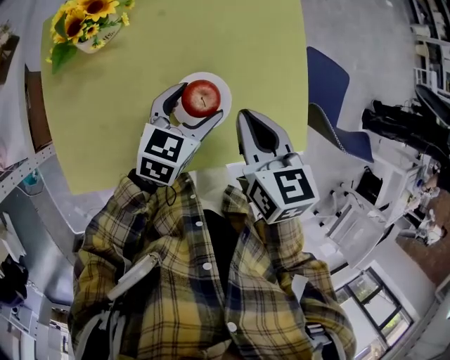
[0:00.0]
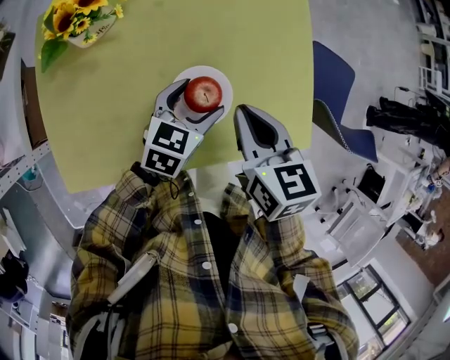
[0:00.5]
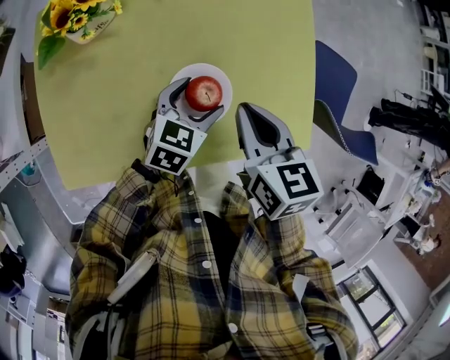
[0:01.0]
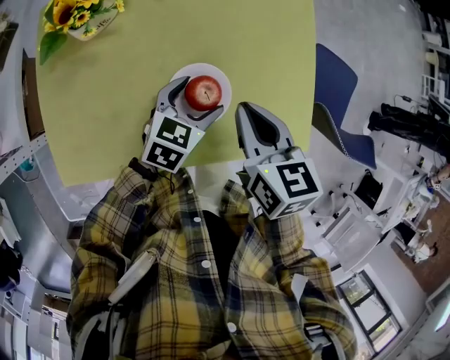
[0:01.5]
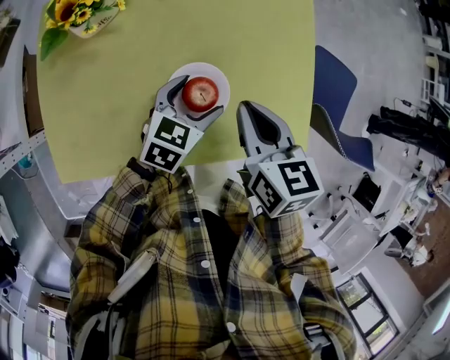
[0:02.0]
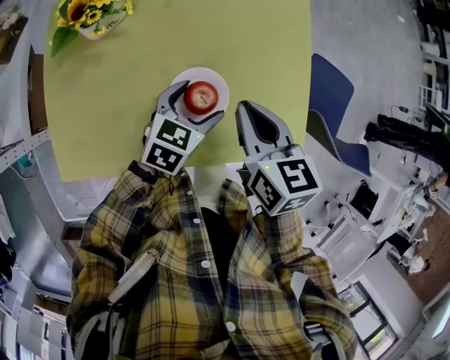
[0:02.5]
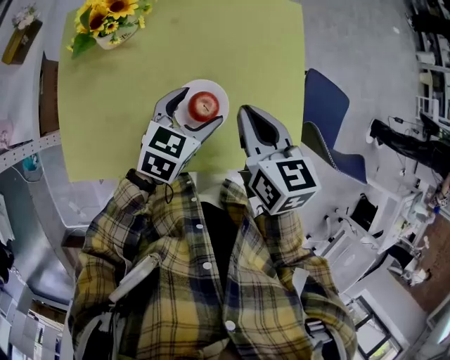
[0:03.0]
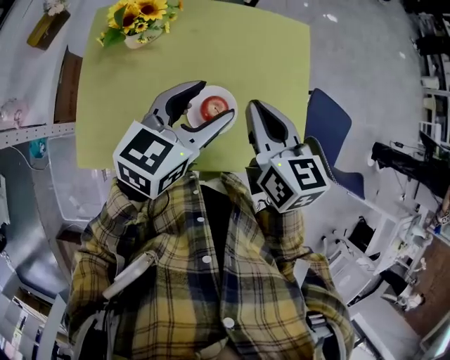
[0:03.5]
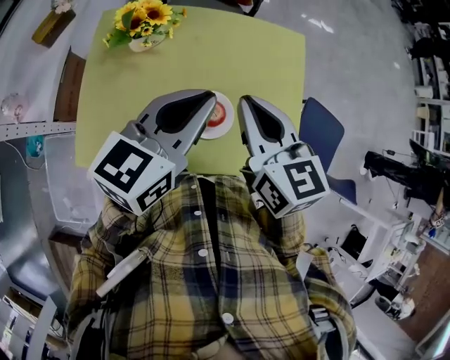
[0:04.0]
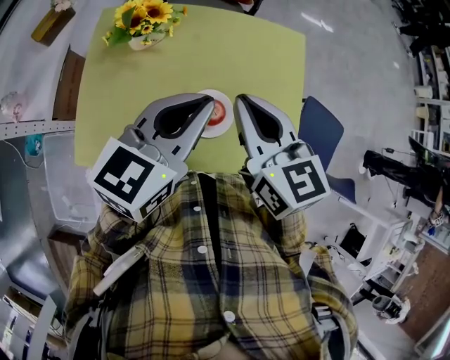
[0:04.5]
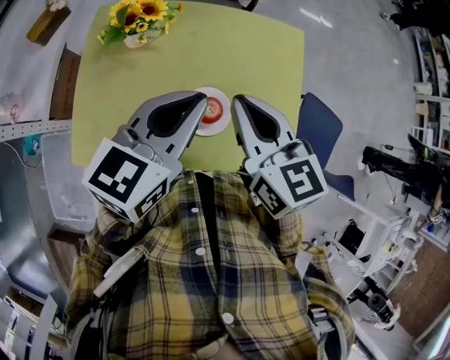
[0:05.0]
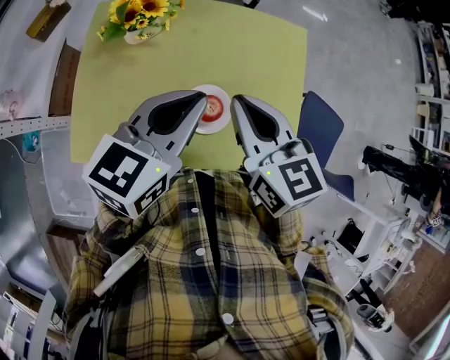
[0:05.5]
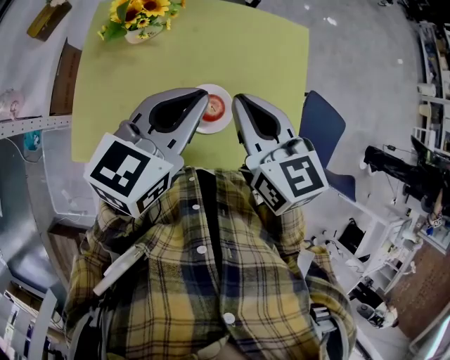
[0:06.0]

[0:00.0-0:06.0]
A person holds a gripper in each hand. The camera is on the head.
0:00.0 to 0:02.0: The left gripper moves about 5 cm.
0:02.0 to 0:04.0: The right gripper goes roughly 15 cm upward, and rotates approximately 20 degrees. The left gripper is displaced upward by some 30 cm, turns by about 30 degrees, and closes.
0:04.0 to 0:06.0: The grippers make only small movements.

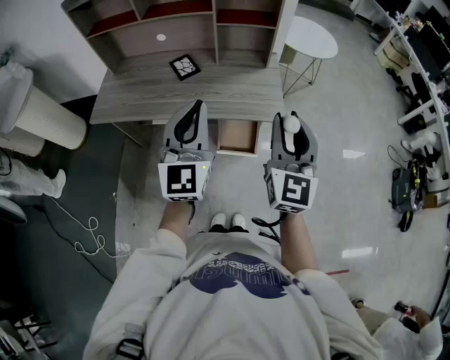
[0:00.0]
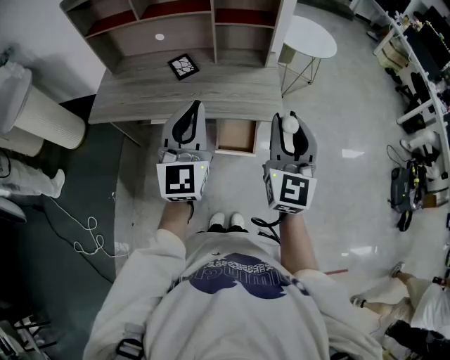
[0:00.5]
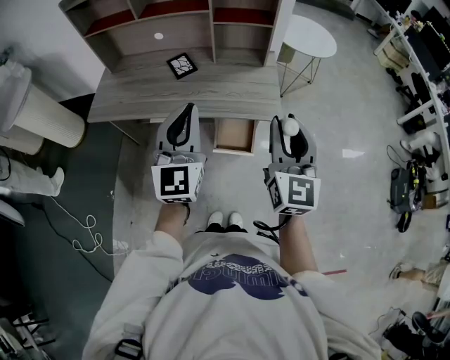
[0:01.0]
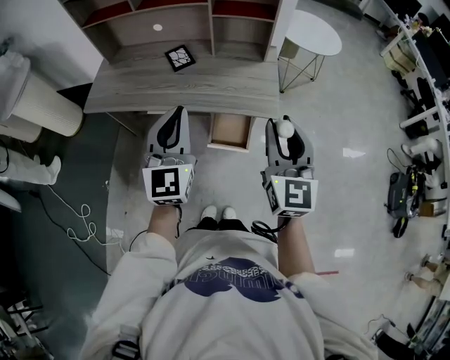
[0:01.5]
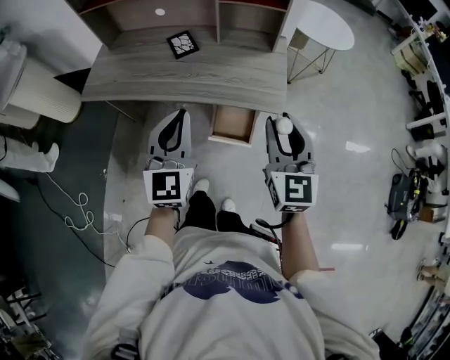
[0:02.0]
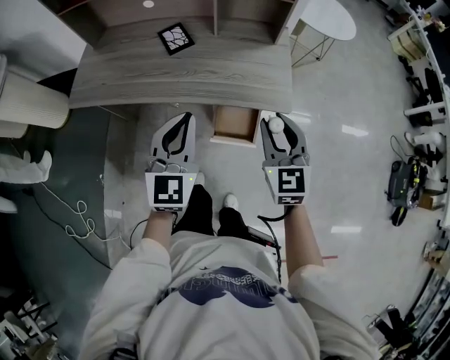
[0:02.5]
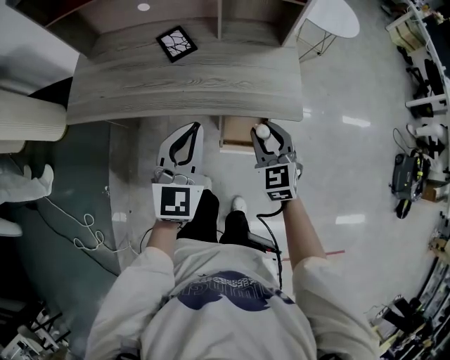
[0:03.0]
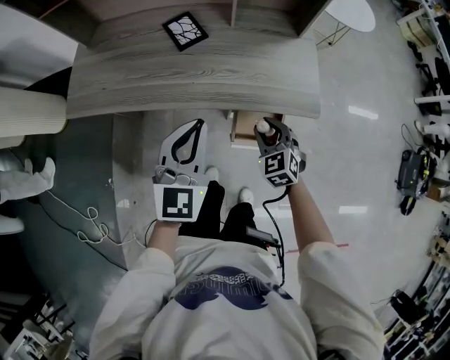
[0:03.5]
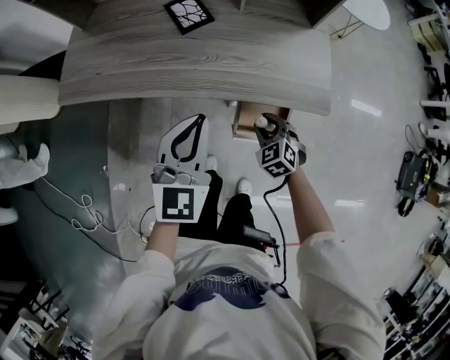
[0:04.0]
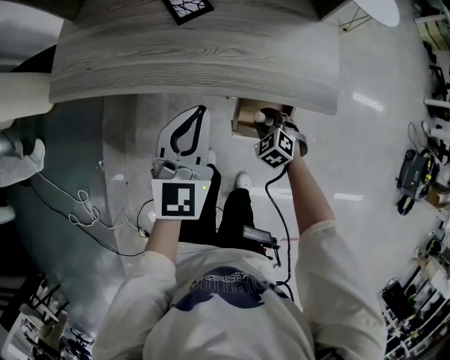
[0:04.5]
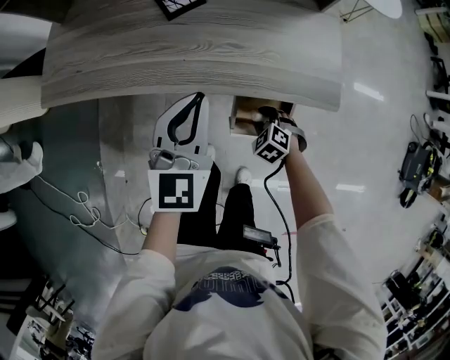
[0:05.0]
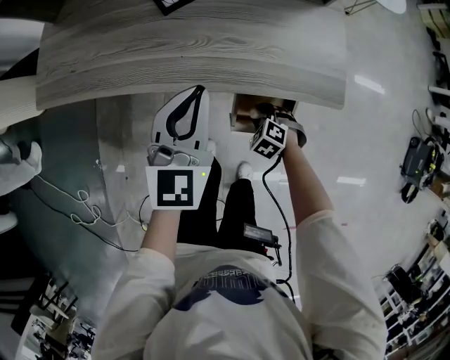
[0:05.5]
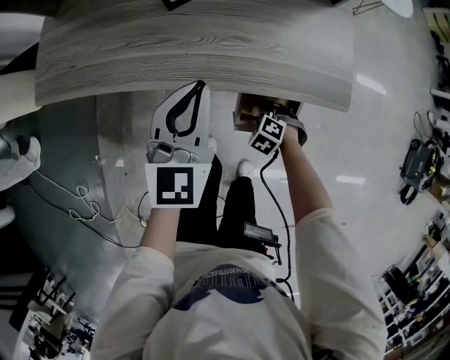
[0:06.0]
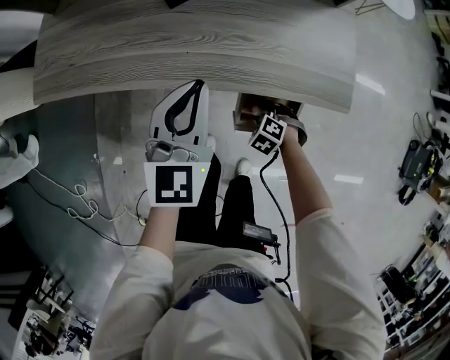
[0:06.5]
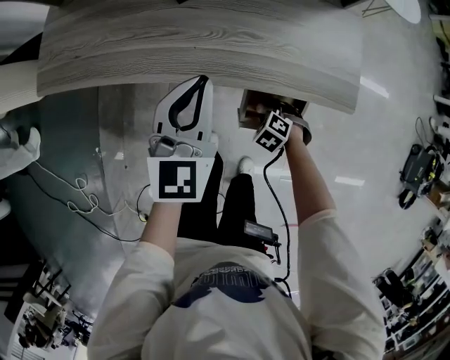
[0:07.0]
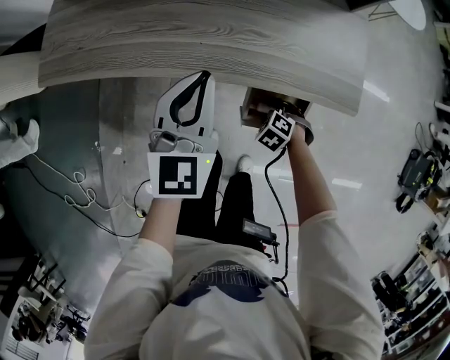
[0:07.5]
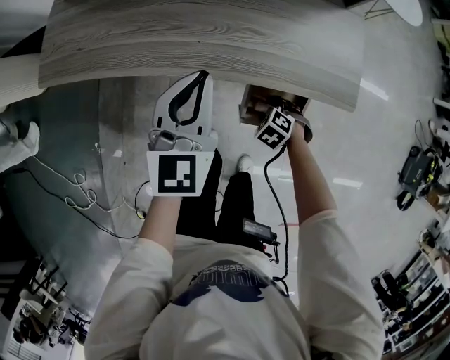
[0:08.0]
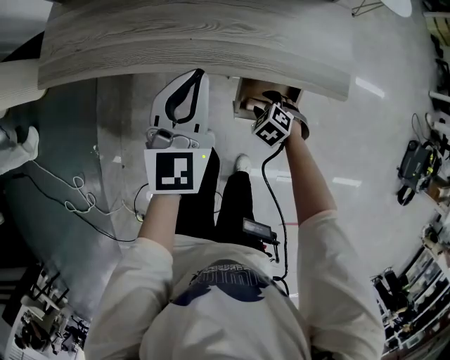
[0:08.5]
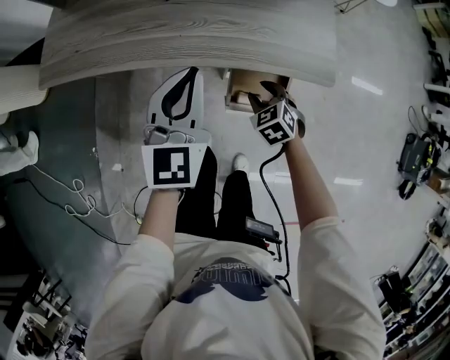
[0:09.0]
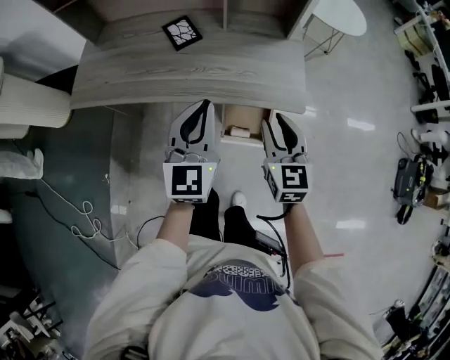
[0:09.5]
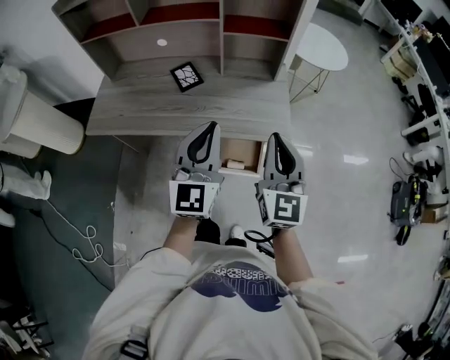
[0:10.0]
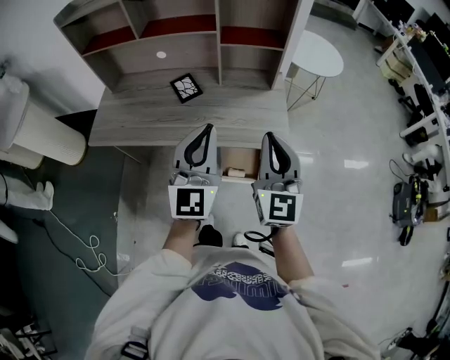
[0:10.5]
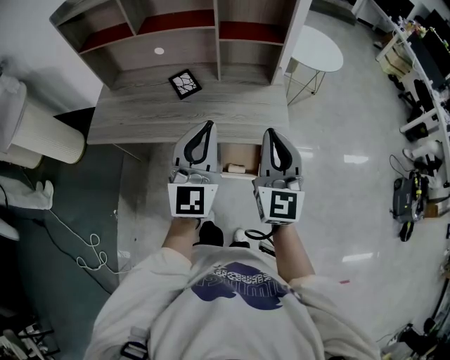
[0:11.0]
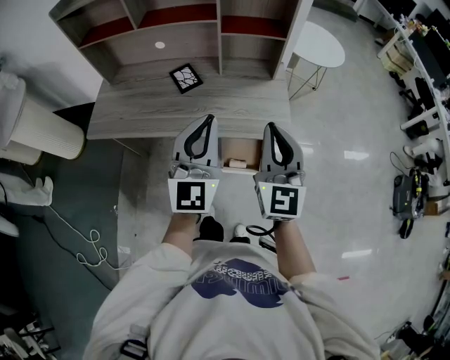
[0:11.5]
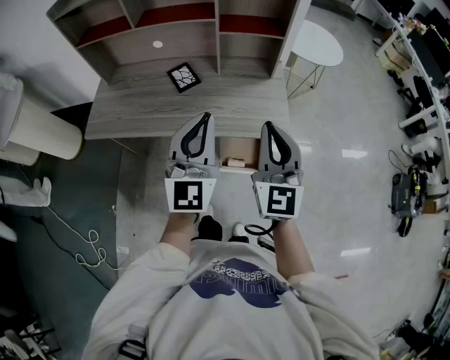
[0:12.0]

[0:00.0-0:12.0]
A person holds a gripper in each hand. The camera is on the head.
0:00.0 to 0:02.0: The grippers both shift downward by about 10 cm.
0:02.0 to 0:04.0: The left gripper is displaced downward, forward and to the left by approximately 20 cm; the right gripper shifts approximately 35 cm downward, and tilts its fingers approximately 50 degrees downward.
0:04.0 to 0:06.0: The right gripper goes about 15 cm downward, and turns by about 30 degrees. Meanwhile the left gripper shifts by roughly 10 cm.
0:06.0 to 0:08.0: The grippers move only a little.
0:08.0 to 0:10.0: The left gripper heads upward, covering roughly 20 cm, and turns by about 20 degrees. Meanwhile the right gripper goes approximately 50 cm upward, angles its fingers upward, by approximately 80 degrees, and closes up.
0:10.0 to 0:12.0: The grippers make only small movements.

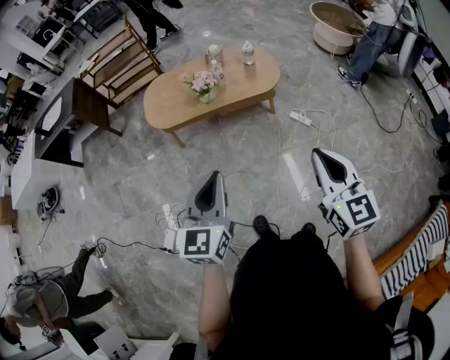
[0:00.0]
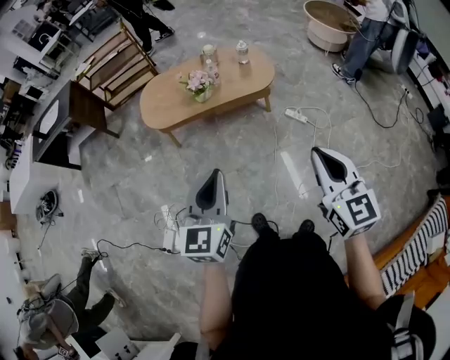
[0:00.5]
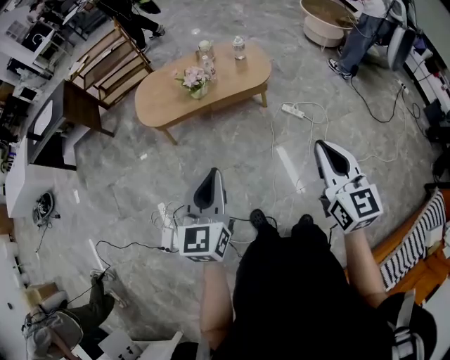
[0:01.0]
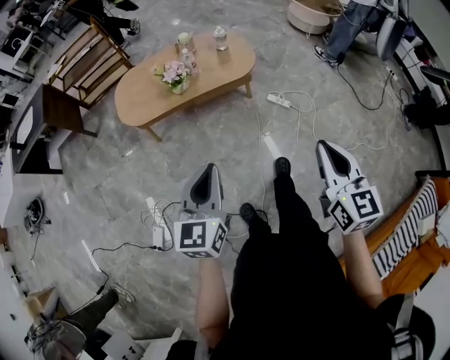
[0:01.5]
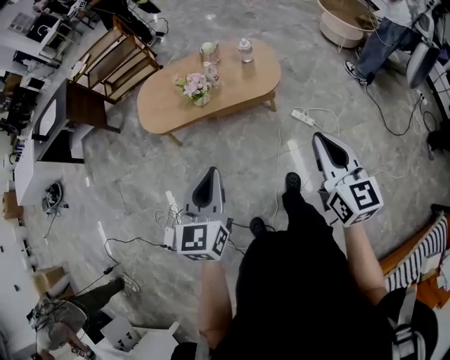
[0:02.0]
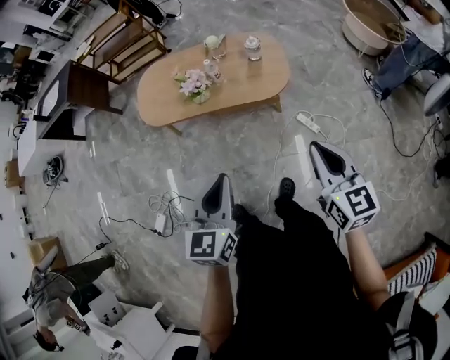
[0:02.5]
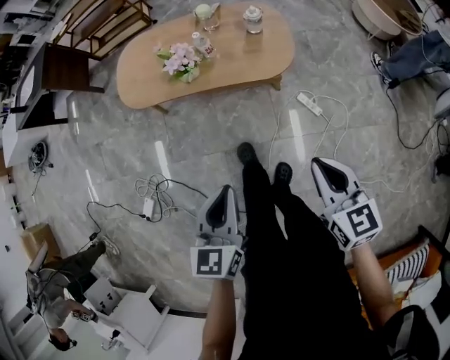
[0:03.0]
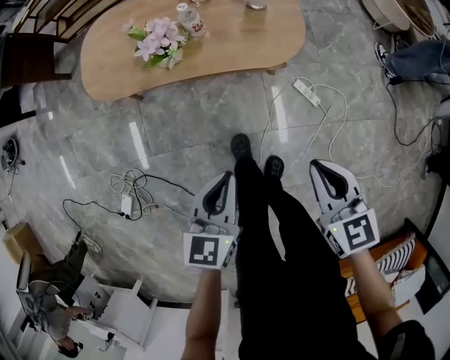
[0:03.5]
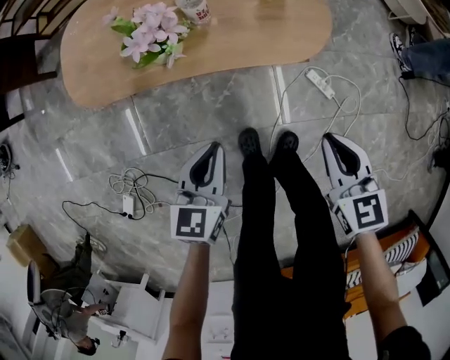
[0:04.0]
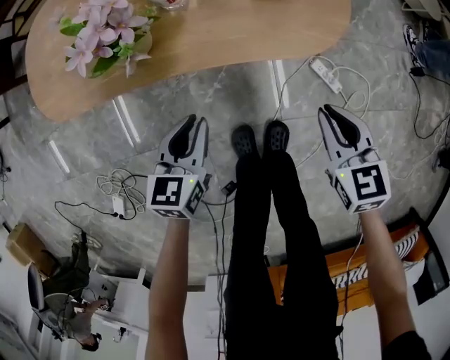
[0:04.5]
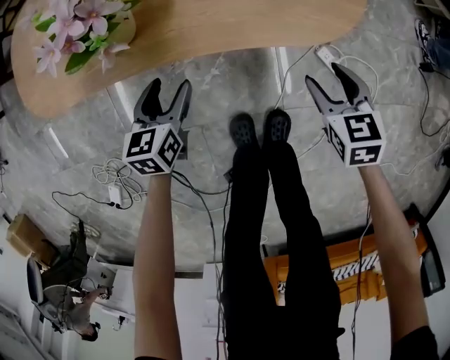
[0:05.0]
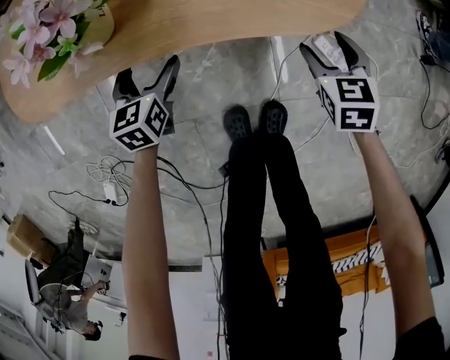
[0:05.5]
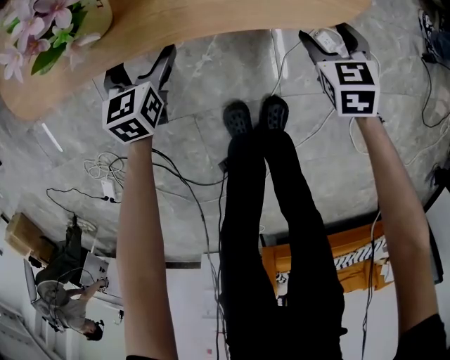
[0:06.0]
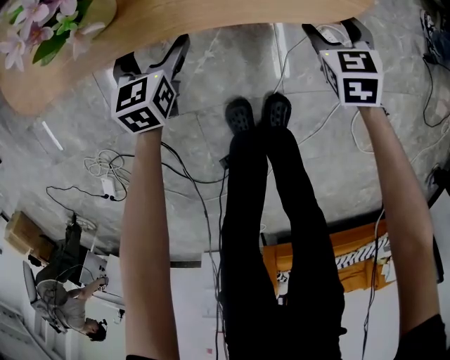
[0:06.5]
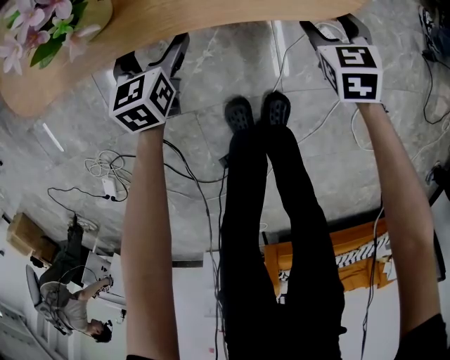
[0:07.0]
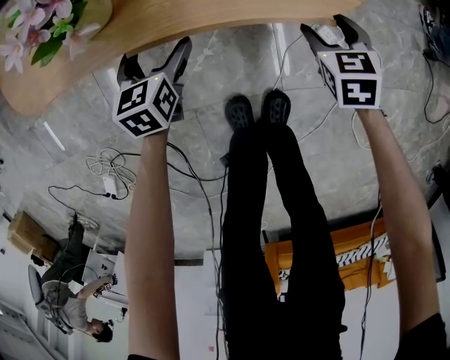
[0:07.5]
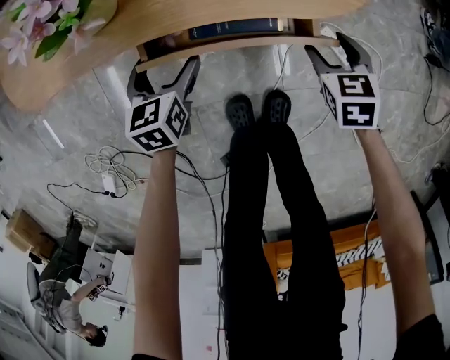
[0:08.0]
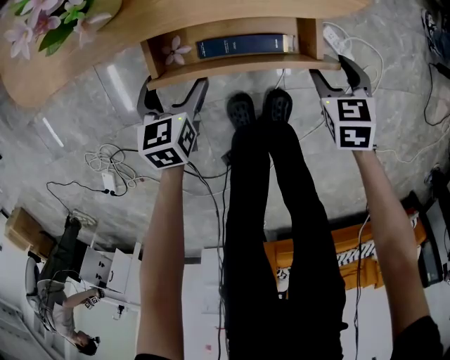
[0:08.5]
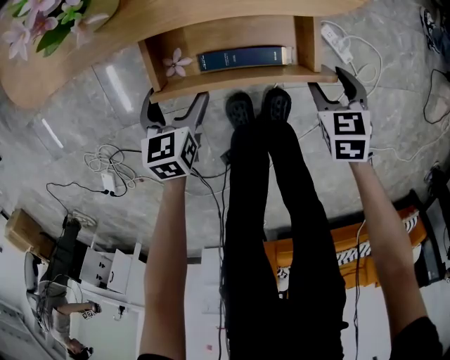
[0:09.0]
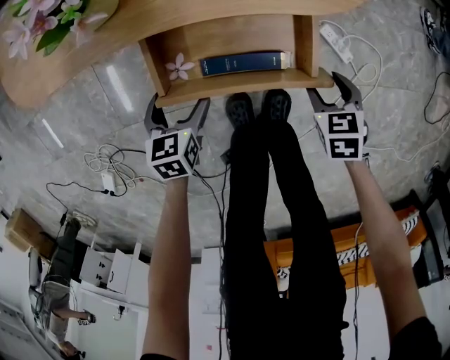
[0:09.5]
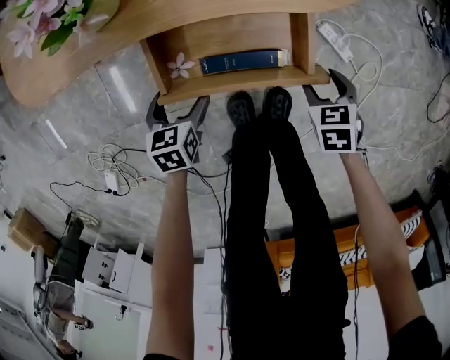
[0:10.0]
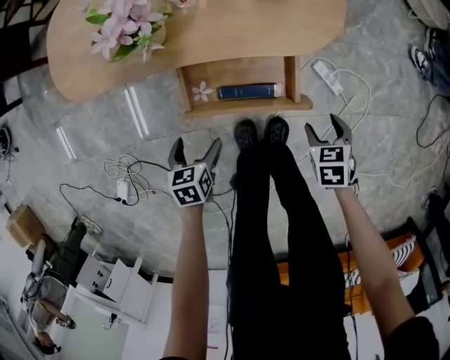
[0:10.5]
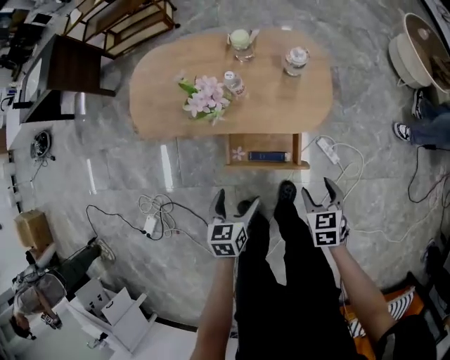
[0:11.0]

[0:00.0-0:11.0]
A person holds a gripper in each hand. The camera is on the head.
0:00.0 to 0:02.0: The two grippers go approximately 15 cm forward and to the right.
0:02.0 to 0:03.5: Both grippers travel together downward and forward, roughly 30 cm. The right gripper rotates approximately 30 degrees.
0:03.5 to 0:05.5: The grippers both shift downward and forward by approximately 50 cm. The left gripper opens its fingers; the right gripper turns by approximately 20 degrees, and opens.
0:05.5 to 0:07.5: The grippers make only small movements.
0:07.5 to 0:09.0: Both grippers move backward, about 15 cm.
0:09.0 to 0:11.0: The two grippers go about 30 cm upward.
